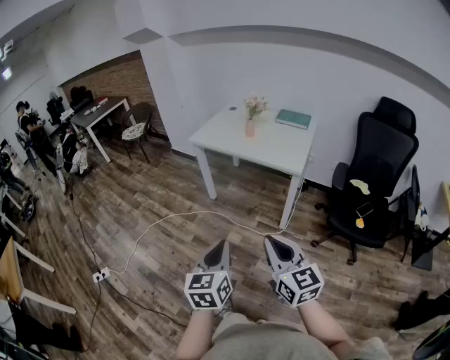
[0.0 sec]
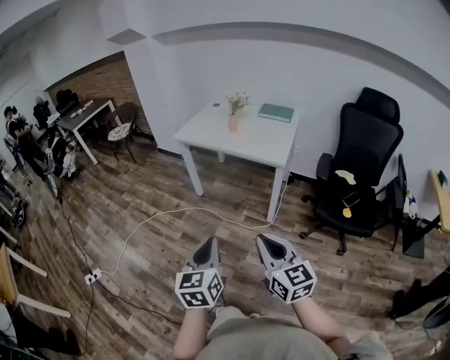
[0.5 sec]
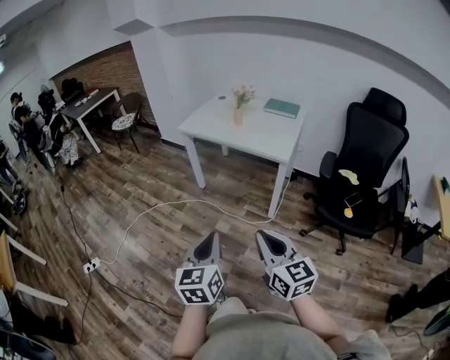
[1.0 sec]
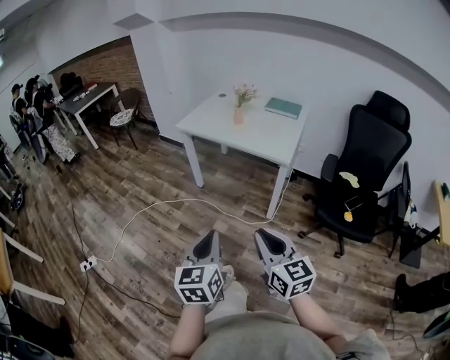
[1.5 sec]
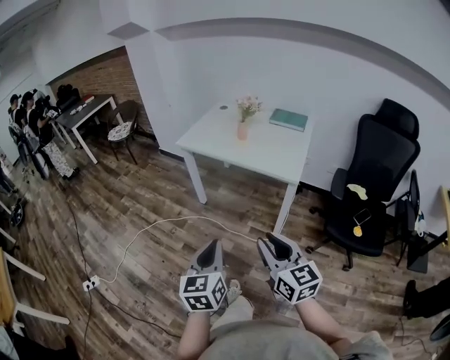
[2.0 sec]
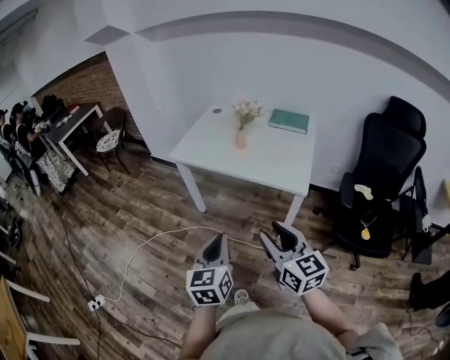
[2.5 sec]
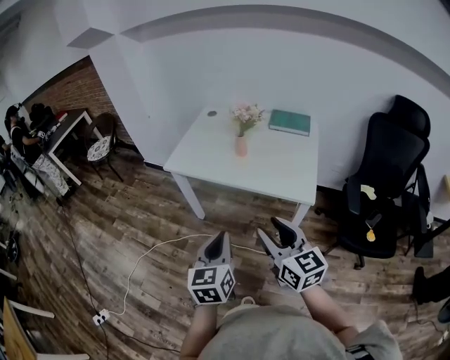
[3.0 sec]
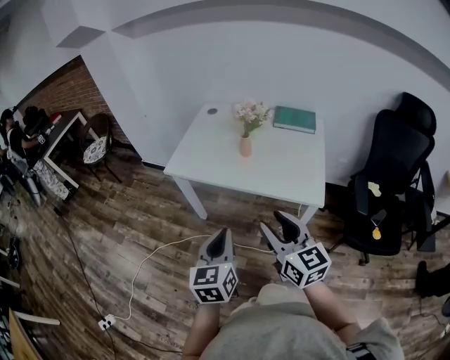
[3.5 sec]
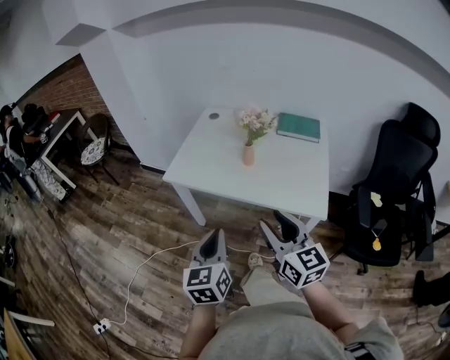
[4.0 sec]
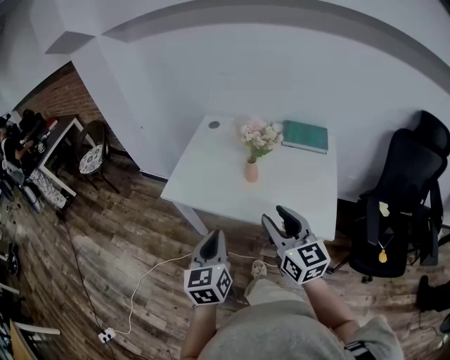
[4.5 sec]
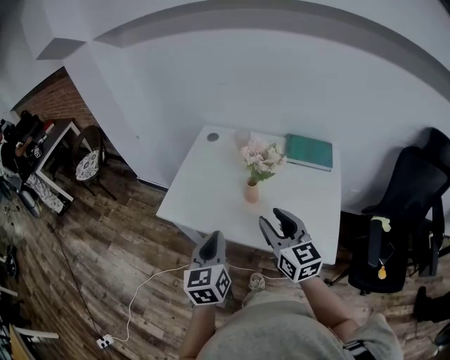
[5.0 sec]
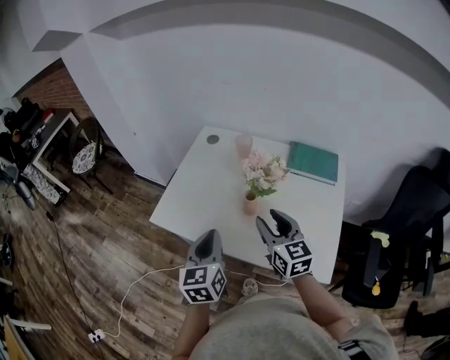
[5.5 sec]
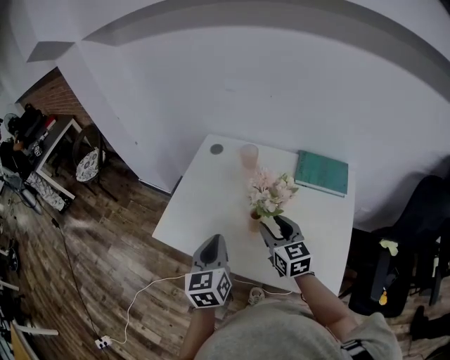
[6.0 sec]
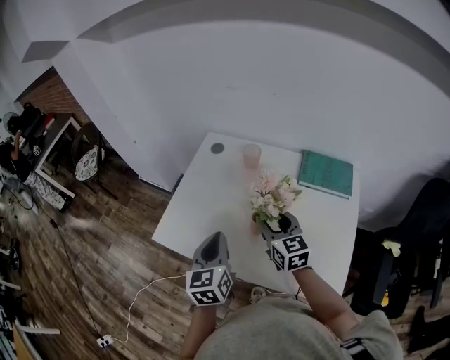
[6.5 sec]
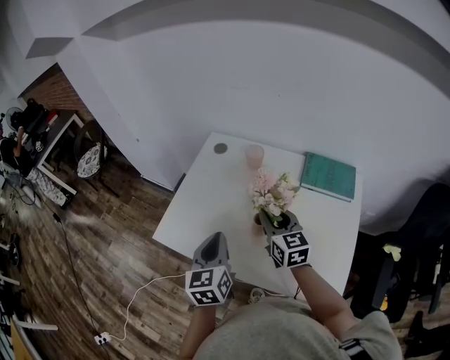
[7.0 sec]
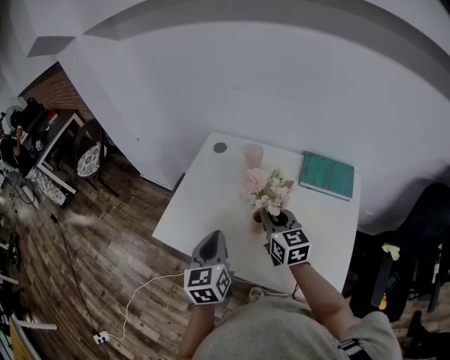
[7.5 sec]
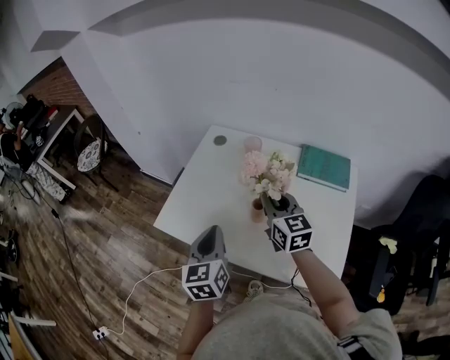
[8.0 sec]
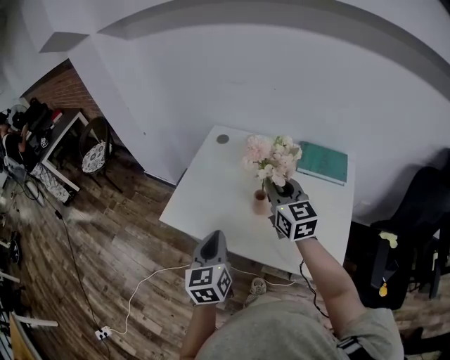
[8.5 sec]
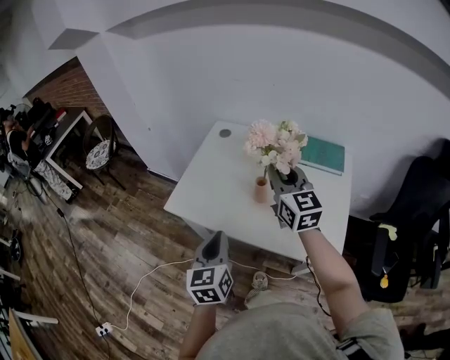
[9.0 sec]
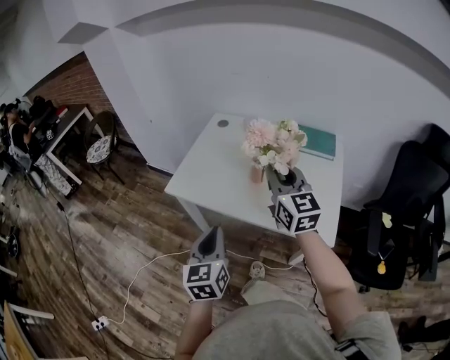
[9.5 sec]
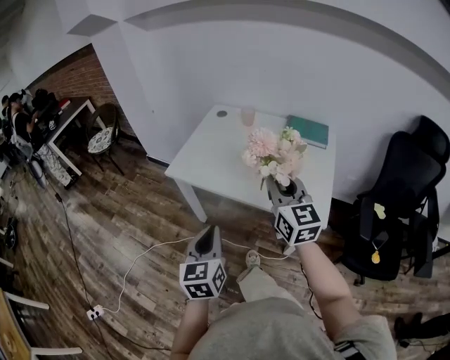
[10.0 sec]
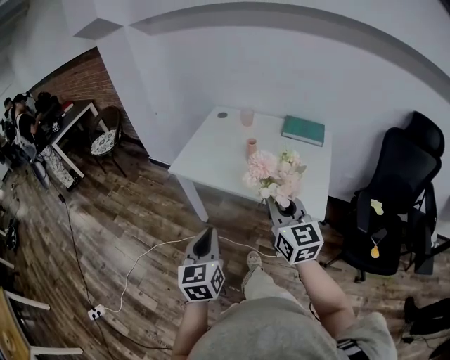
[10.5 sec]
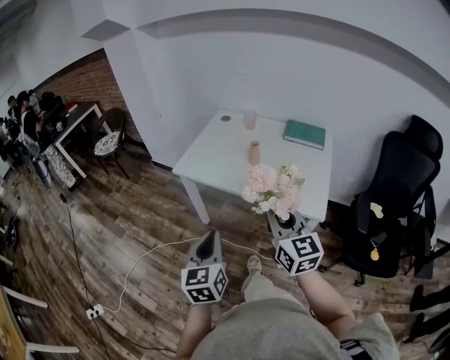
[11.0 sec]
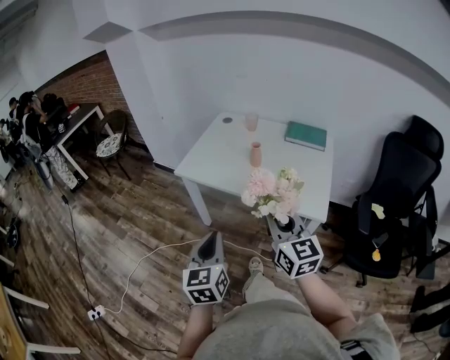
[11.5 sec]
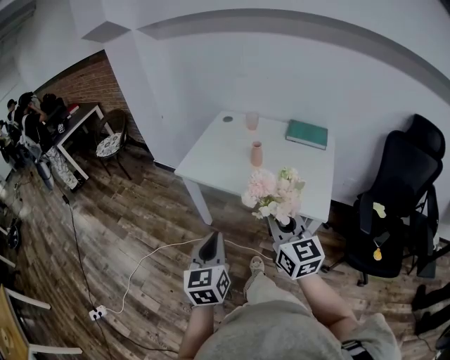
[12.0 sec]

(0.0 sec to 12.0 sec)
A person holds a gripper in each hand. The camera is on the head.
0.0 sec - 2.0 sec: The two grippers go about 10 cm forward. The right gripper opens its fingers.
2.0 sec - 4.0 sec: The grippers both shift forward by approximately 35 cm.
4.0 sec - 6.0 sec: The two grippers go approximately 35 cm forward.
6.0 sec - 8.0 sec: The right gripper moves upward, some 5 cm, and closes.
8.0 sec - 10.0 sec: Both grippers travel together backward, approximately 30 cm.
10.0 sec - 12.0 sec: The left gripper moves backward, some 5 cm. Meanwhile the right gripper is displaced backward by approximately 15 cm.

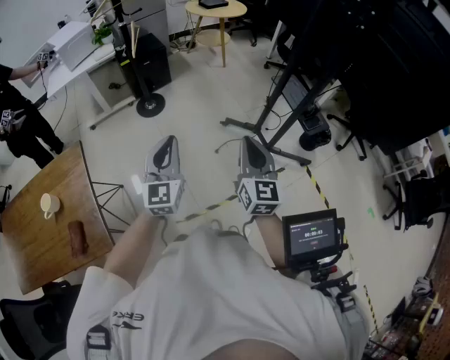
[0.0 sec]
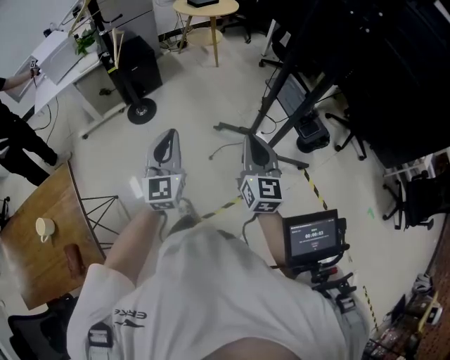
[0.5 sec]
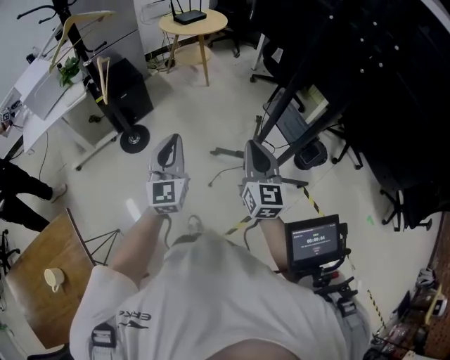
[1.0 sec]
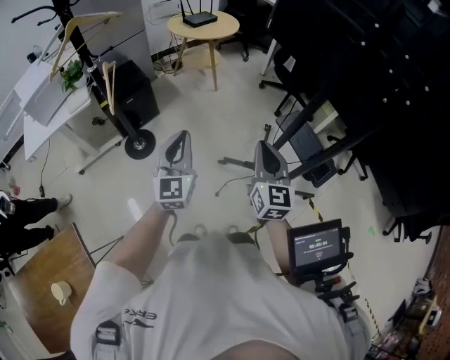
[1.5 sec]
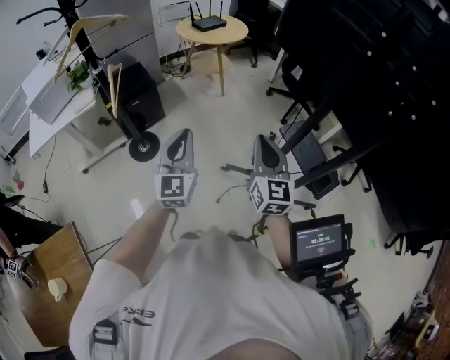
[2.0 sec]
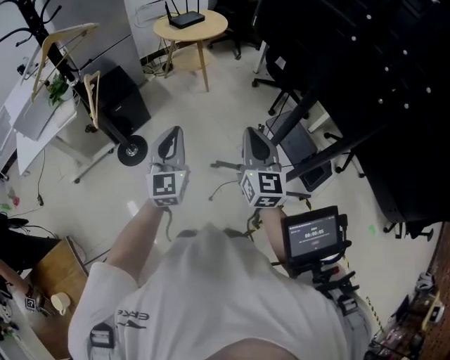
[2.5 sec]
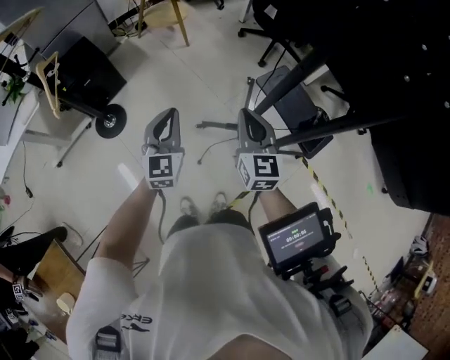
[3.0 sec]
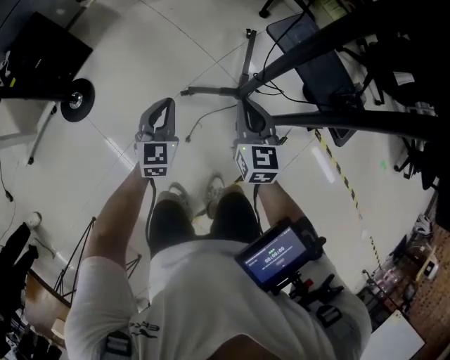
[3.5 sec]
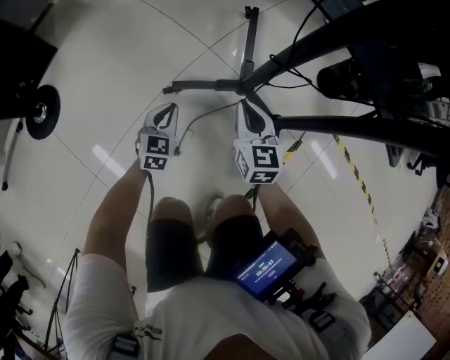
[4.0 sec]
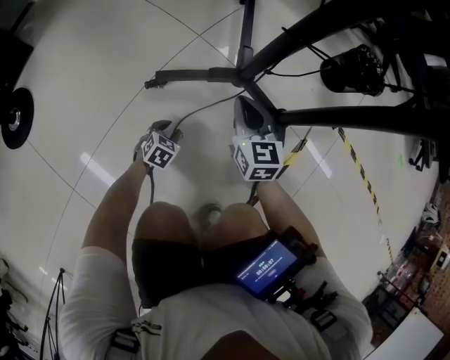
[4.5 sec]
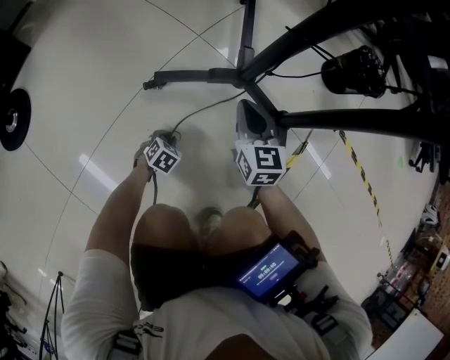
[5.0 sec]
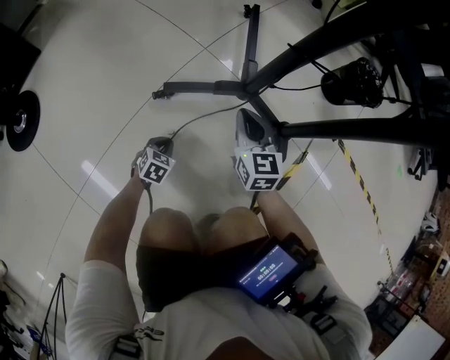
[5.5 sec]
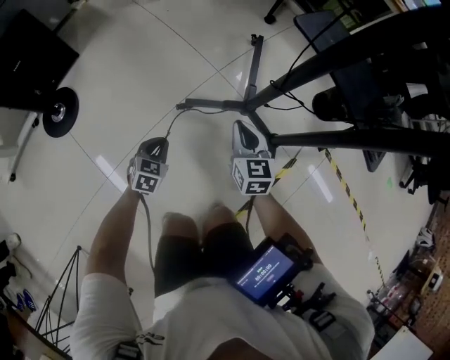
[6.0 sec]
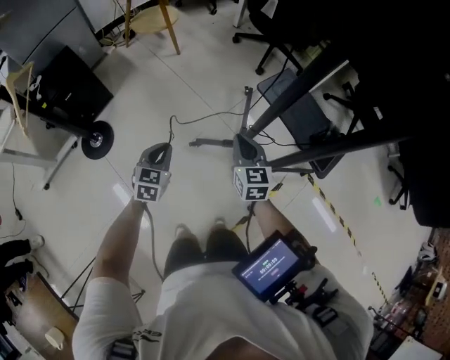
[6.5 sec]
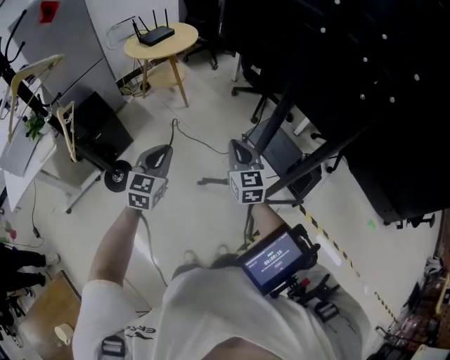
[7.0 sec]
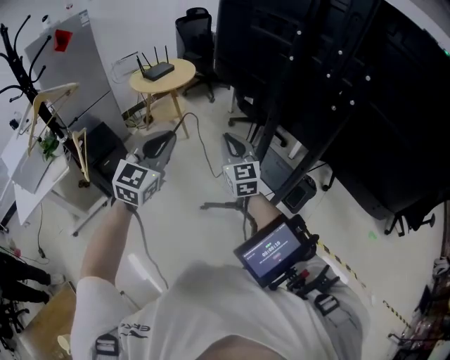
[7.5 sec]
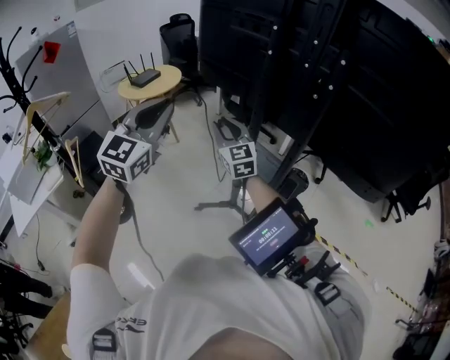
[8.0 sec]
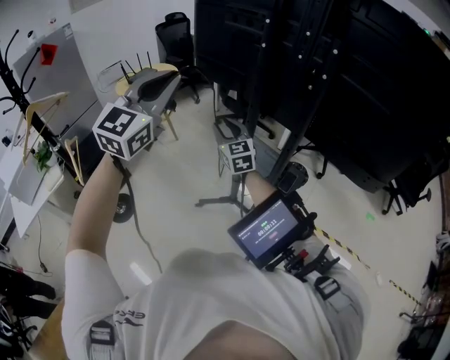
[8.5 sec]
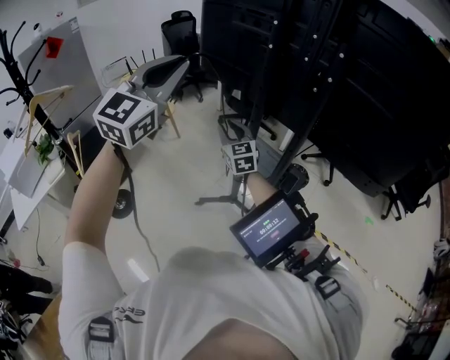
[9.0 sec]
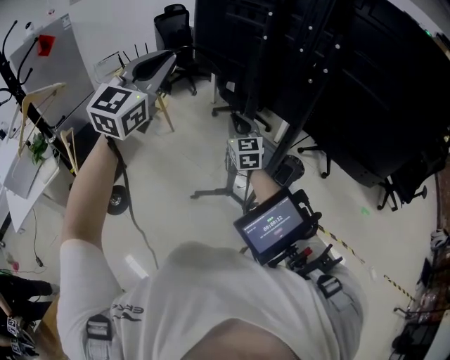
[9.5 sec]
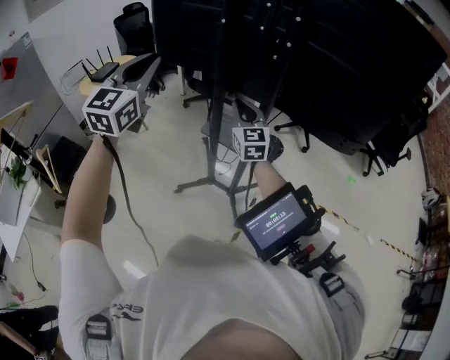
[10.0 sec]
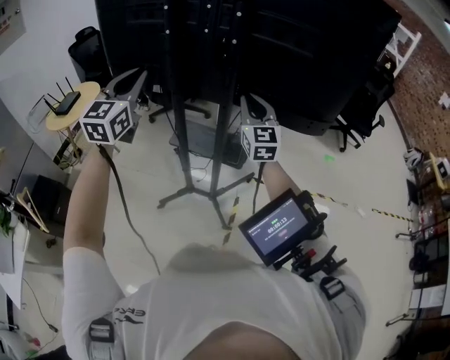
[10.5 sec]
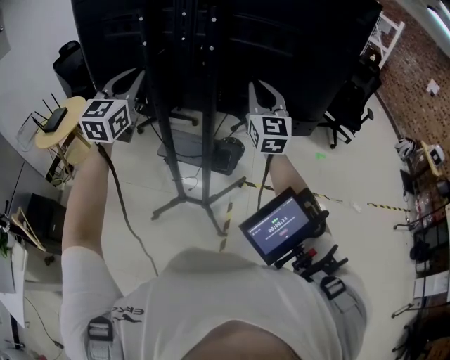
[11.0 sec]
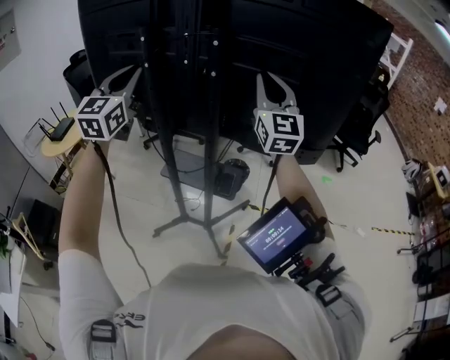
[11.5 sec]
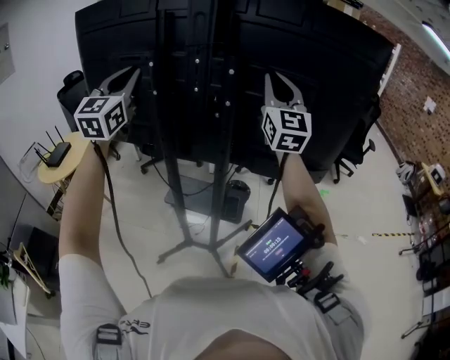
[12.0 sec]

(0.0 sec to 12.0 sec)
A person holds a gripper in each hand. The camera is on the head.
0.0 sec - 2.0 sec: The grippers both shift forward by roughly 40 cm.
2.0 sec - 4.0 sec: The grippers both shift downward by approximately 70 cm. The left gripper tips its fingers downward by roughly 40 degrees, while the right gripper swivels some 30 degrees.
4.0 sec - 6.0 sec: The right gripper moves some 10 cm downward and comes back; the left gripper moves backward and to the left, some 10 cm, moves some 30 cm downward and comes back, and opens, then closes once more.
6.0 sec - 8.0 sec: The grippers both shift upward by roughly 80 cm. The right gripper turns by some 30 degrees, and opens its fingers; the left gripper points its fingers about 50 degrees further upward.
8.0 sec - 10.0 sec: The left gripper is displaced to the right by some 5 cm. The right gripper shifts some 15 cm to the right, and rotates about 20 degrees.
10.0 sec - 12.0 sec: The left gripper heads forward and upward, covering some 25 cm. The right gripper moves upward and to the right, approximately 35 cm, and rotates roughly 30 degrees.

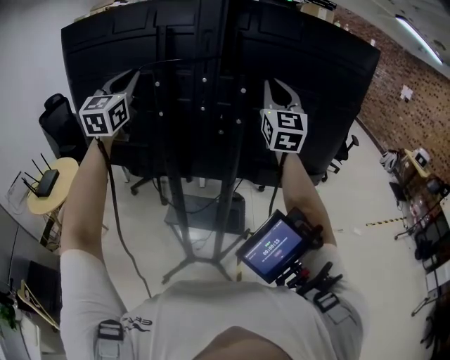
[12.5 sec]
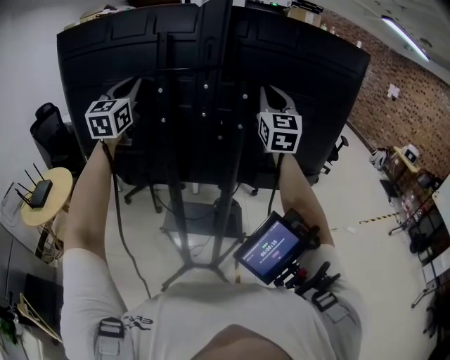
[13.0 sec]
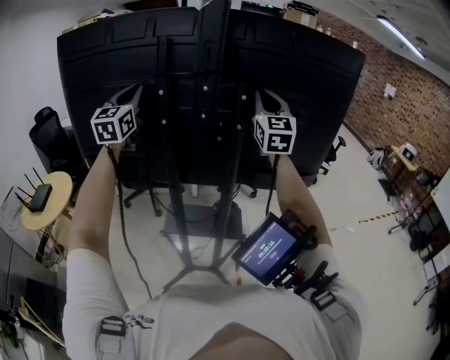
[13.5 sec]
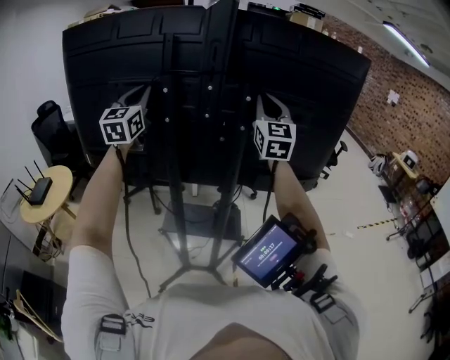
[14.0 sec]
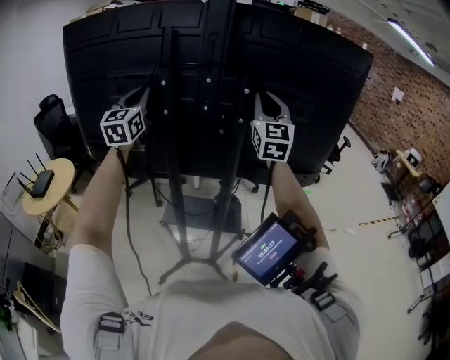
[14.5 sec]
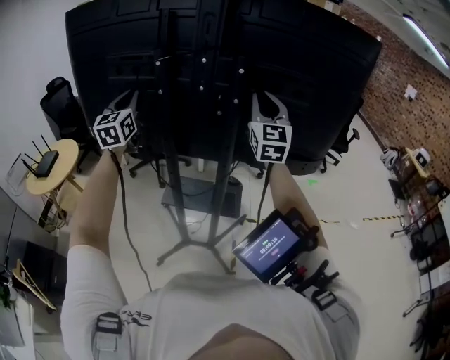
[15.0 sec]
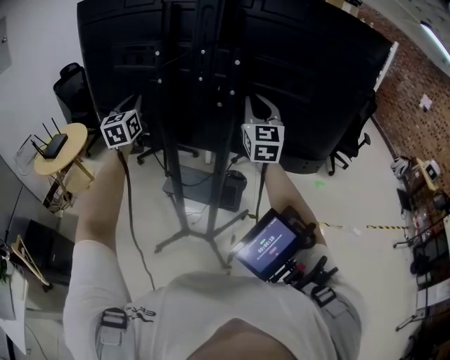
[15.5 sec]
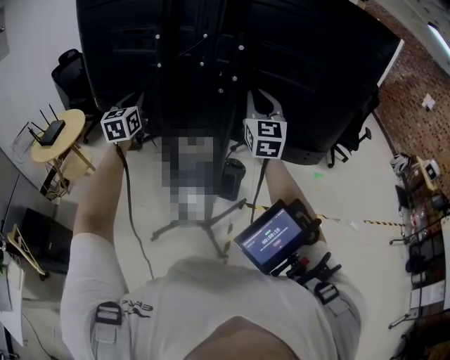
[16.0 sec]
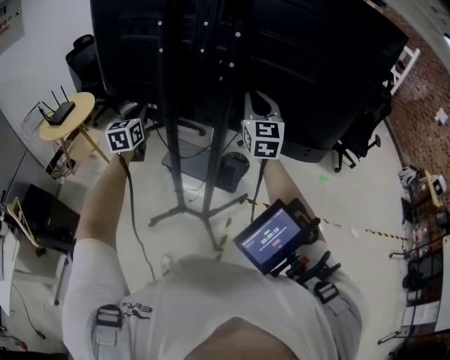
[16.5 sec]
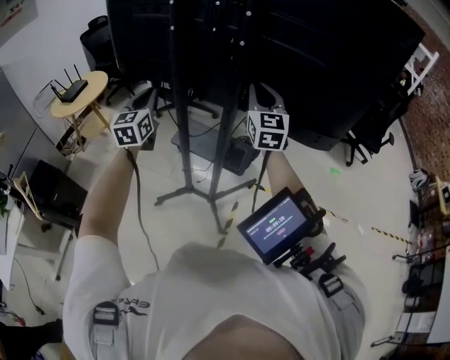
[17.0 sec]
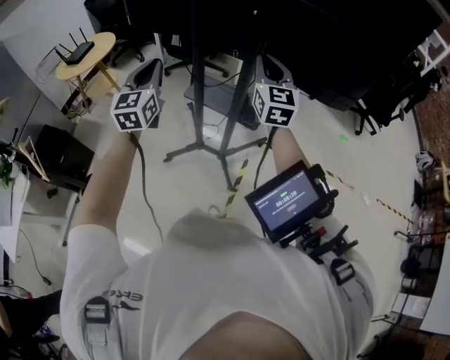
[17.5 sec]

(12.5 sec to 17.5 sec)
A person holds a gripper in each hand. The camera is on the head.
12.5 sec - 15.0 sec: Both grippers move downward, roughly 10 cm.
15.0 sec - 17.5 sec: The left gripper moves backward and downward, some 30 cm. Meanwhile the right gripper is displaced downward and backward by approximately 20 cm, and changes its angle by roughly 20 degrees.
